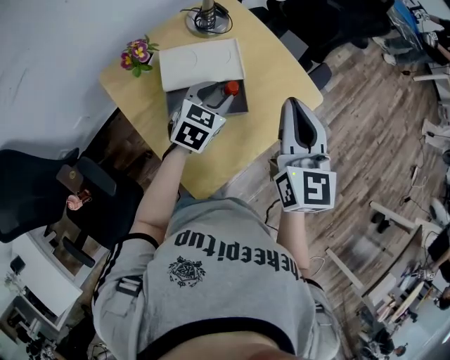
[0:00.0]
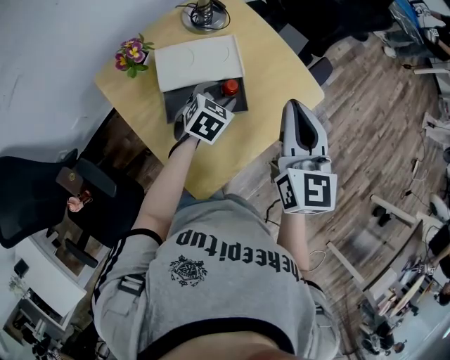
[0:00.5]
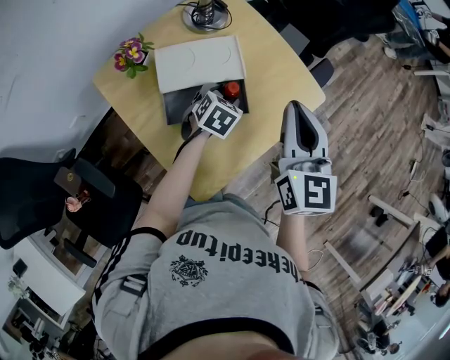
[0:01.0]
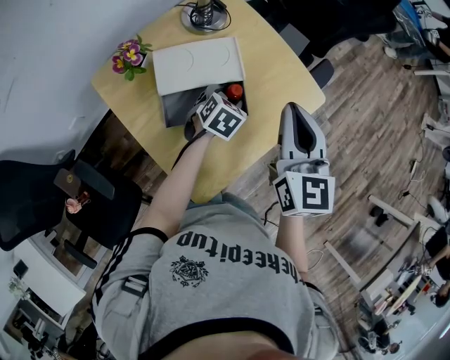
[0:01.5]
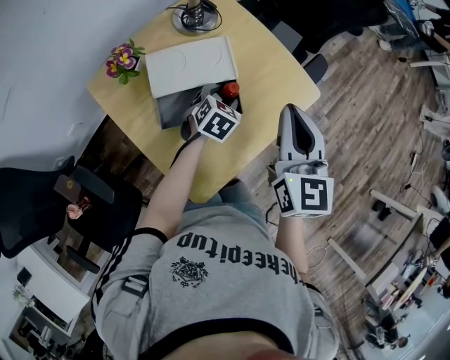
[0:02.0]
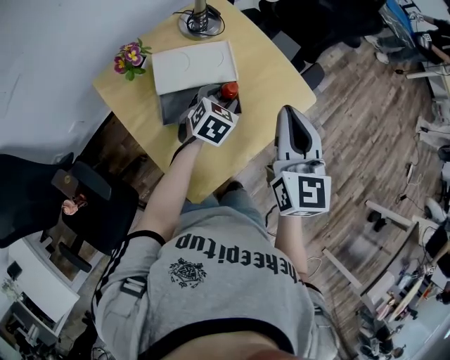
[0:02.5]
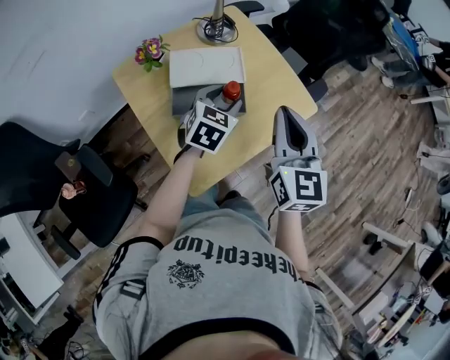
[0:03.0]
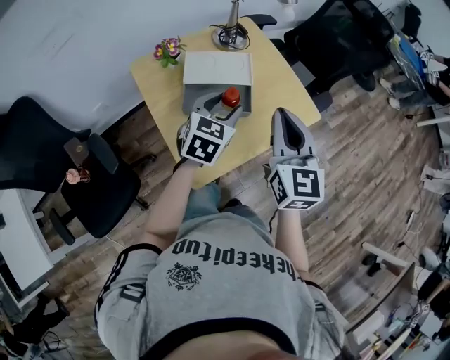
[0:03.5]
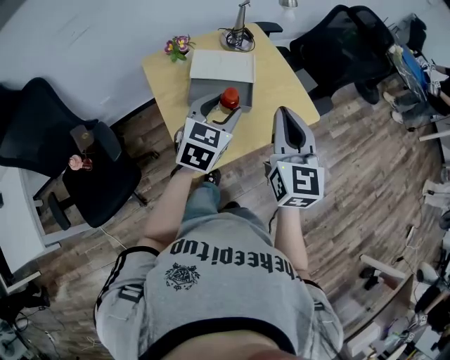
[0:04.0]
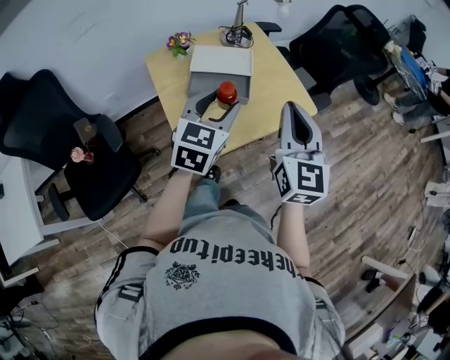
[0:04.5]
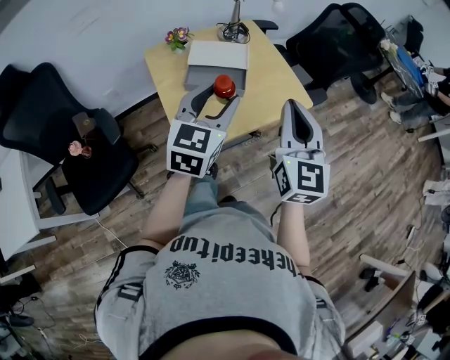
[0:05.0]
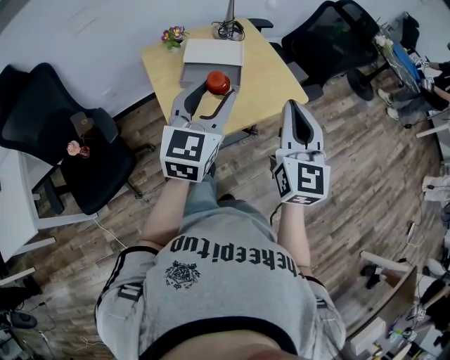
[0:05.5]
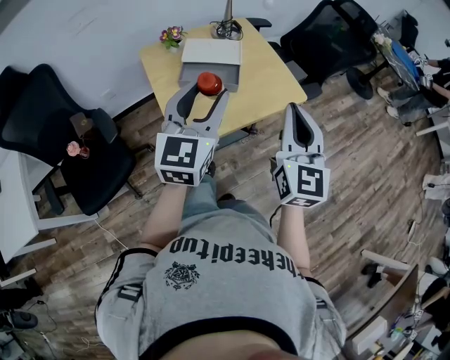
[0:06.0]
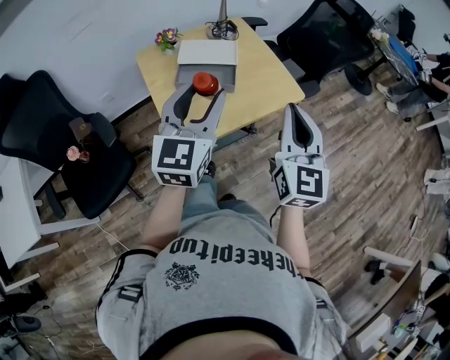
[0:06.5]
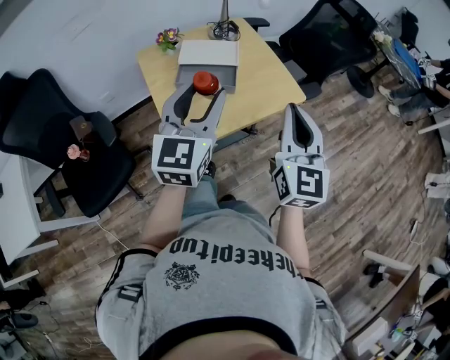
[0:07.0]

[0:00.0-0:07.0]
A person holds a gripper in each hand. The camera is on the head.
0:00.0 to 0:02.0: The left gripper moves downward, about 10 cm.
0:02.0 to 0:03.5: The left gripper is displaced upward and backward by roughly 20 cm, and rotates roughly 30 degrees. Meanwhile the right gripper goes roughly 10 cm backward.
0:03.5 to 0:05.0: The right gripper heads backward, to the right and upward, covering approximately 15 cm, while the left gripper is displaced backward and upward by about 20 cm, and swivels about 20 degrees.
0:05.0 to 0:07.0: The grippers make only small movements.

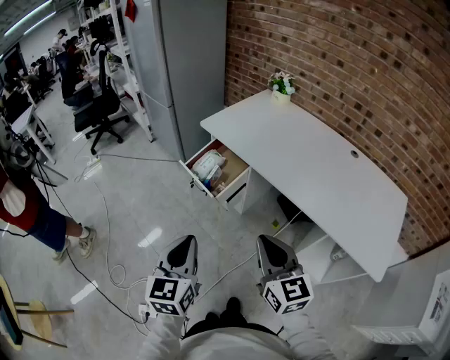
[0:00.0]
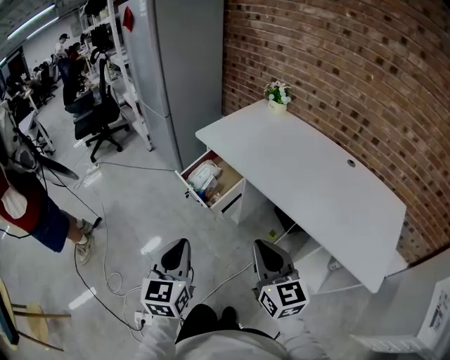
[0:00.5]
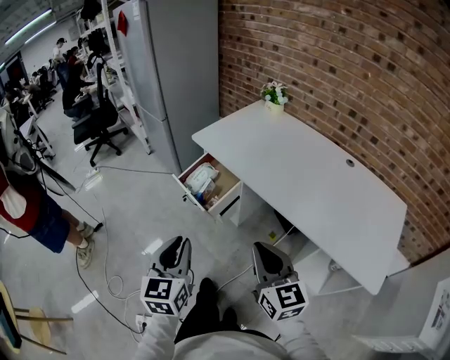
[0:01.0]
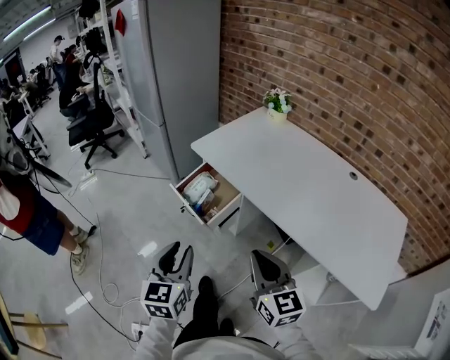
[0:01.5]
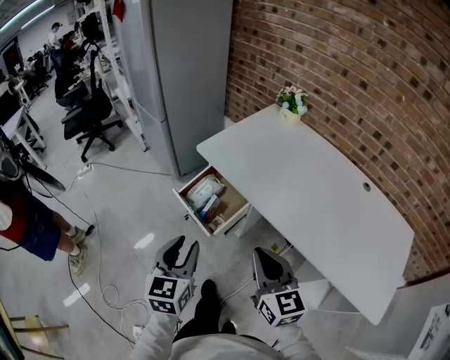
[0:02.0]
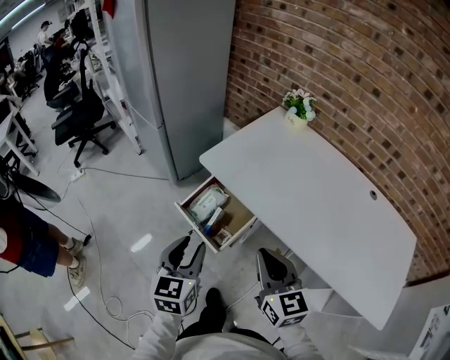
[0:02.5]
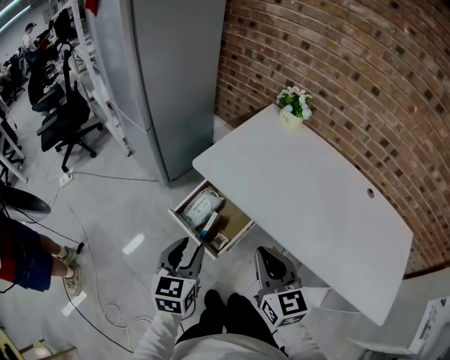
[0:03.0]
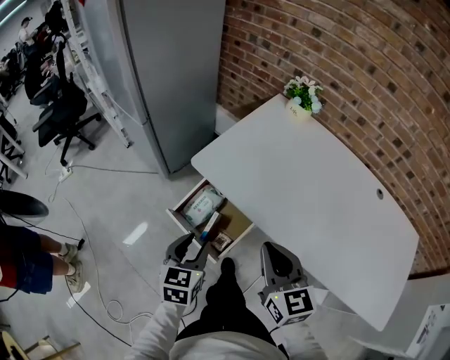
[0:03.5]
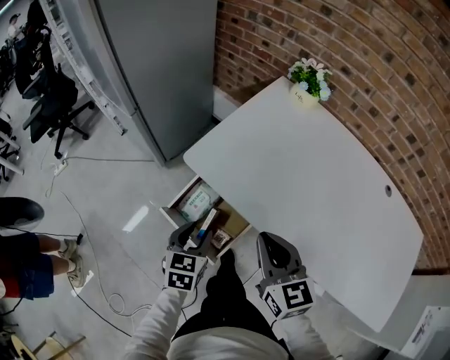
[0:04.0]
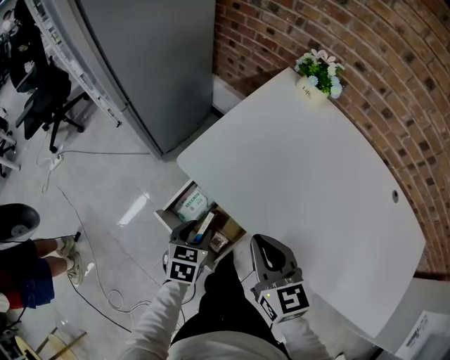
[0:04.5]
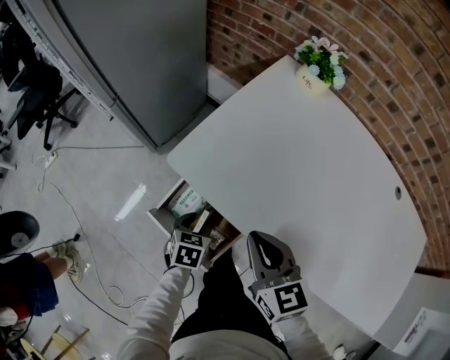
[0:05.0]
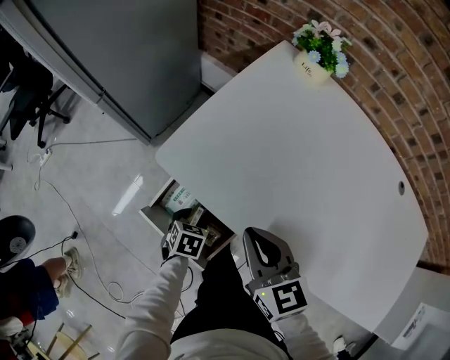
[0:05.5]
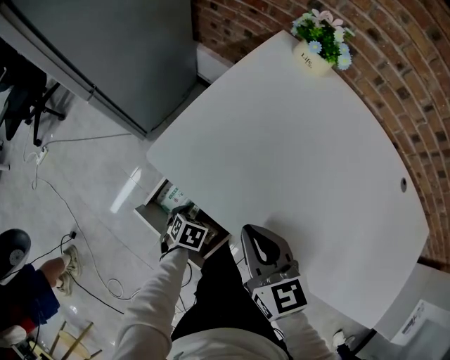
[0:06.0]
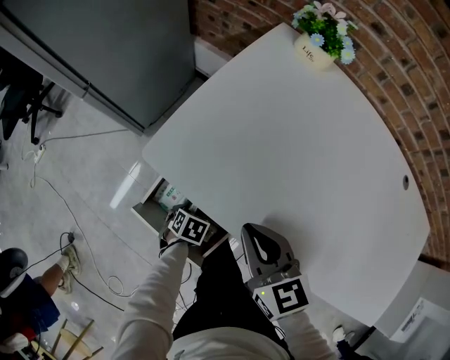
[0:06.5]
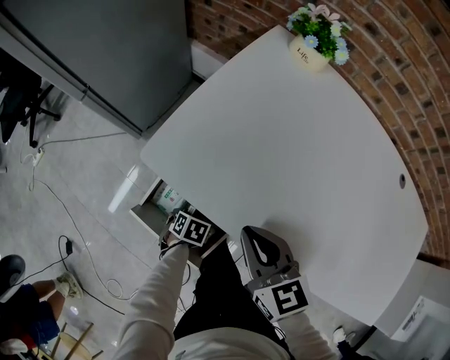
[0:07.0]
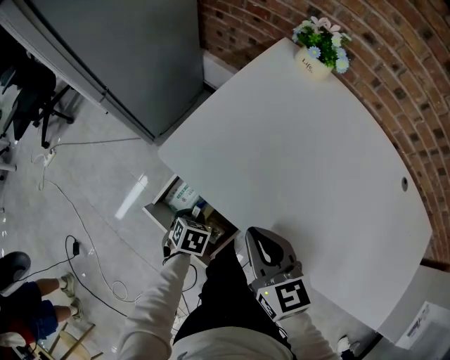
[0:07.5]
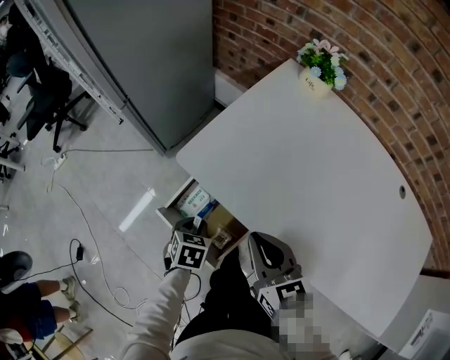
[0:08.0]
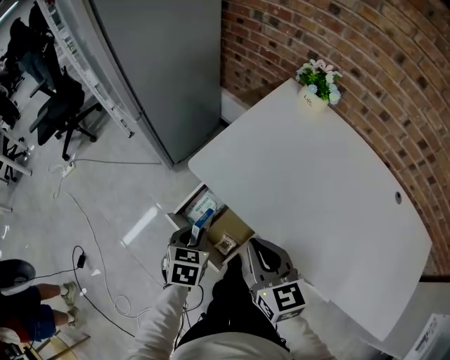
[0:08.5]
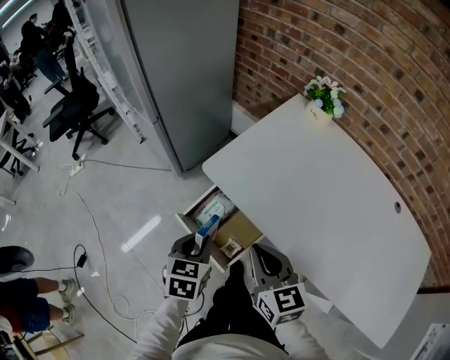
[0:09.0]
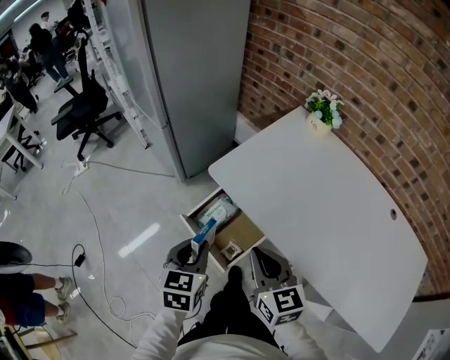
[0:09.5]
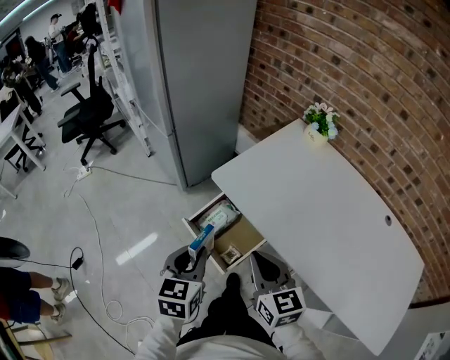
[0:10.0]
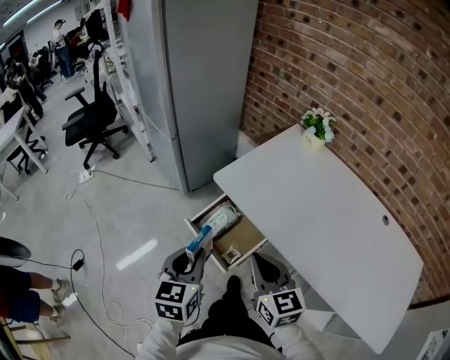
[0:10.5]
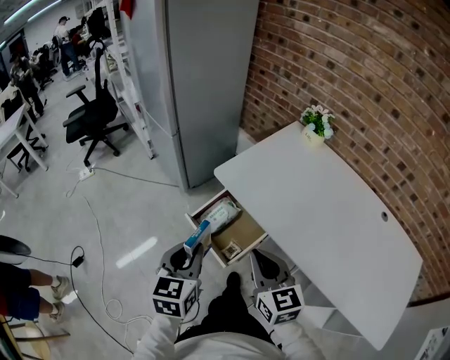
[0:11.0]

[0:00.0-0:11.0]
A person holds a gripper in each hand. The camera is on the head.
0:00.0 to 0:02.0: Both grippers move forward, roughly 20 cm. The left gripper opens up.
0:02.0 to 0:03.5: The left gripper goes roughly 20 cm forward and downward. The right gripper travels forward by roughly 20 cm.
0:03.5 to 0:05.5: The right gripper heads forward and downward, covering approximately 20 cm. The left gripper heads downward and forward, covering roughly 30 cm, and angles its fingers downward, by some 30 degrees.
0:05.5 to 0:07.5: The left gripper reaches some 10 cm downward, then returns, and closes.
0:07.5 to 0:09.0: The left gripper shifts roughly 25 cm upward, and changes its angle by approximately 30 degrees; the right gripper shifts approximately 10 cm backward, upward and to the left.
0:09.0 to 0:11.0: The left gripper goes some 15 cm upward, backward and to the left, and swivels about 20 degrees. Meanwhile the right gripper shifts roughly 10 cm backward.

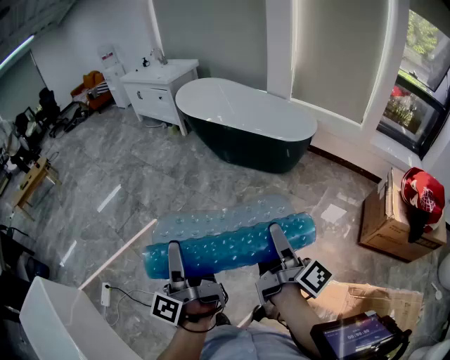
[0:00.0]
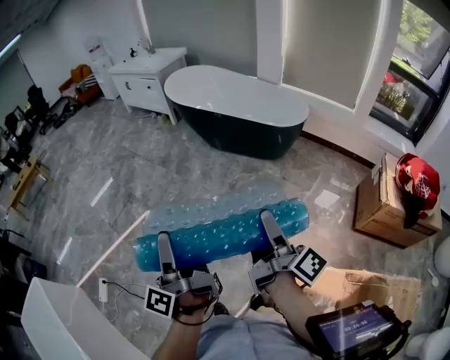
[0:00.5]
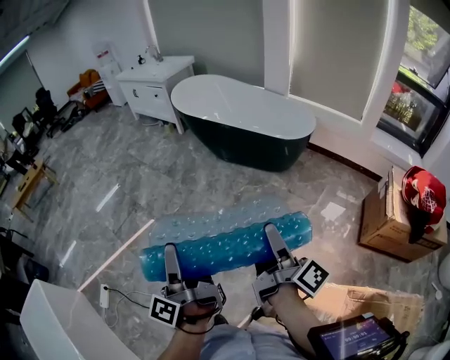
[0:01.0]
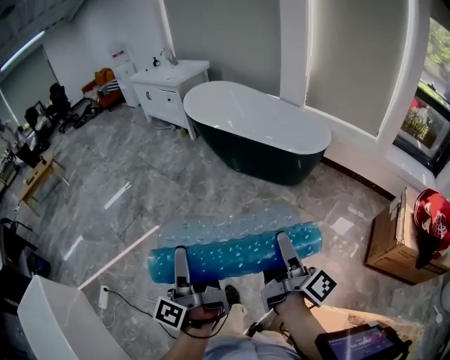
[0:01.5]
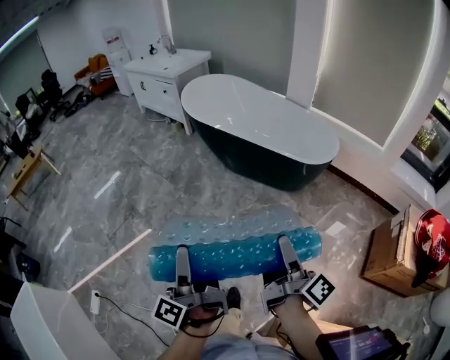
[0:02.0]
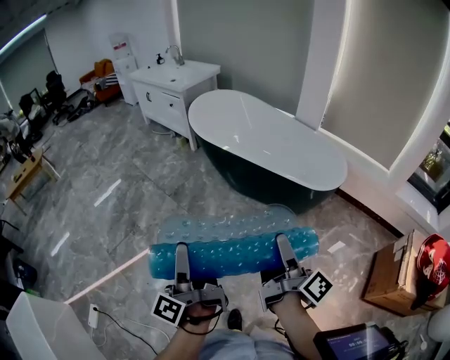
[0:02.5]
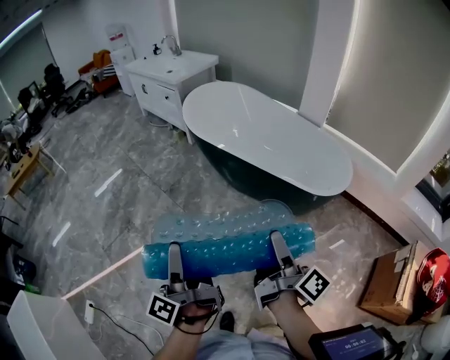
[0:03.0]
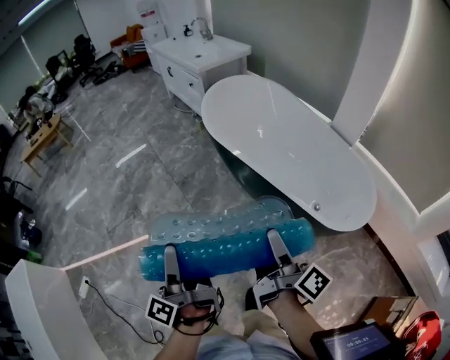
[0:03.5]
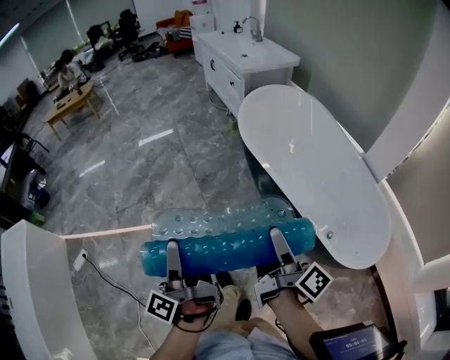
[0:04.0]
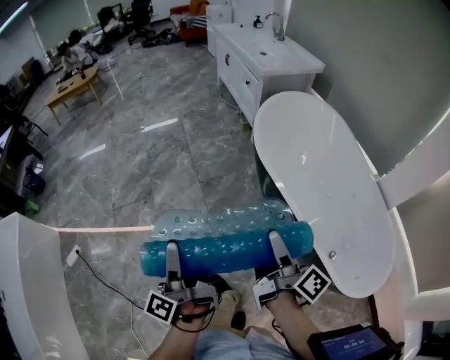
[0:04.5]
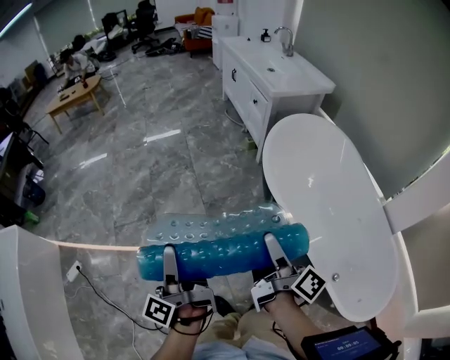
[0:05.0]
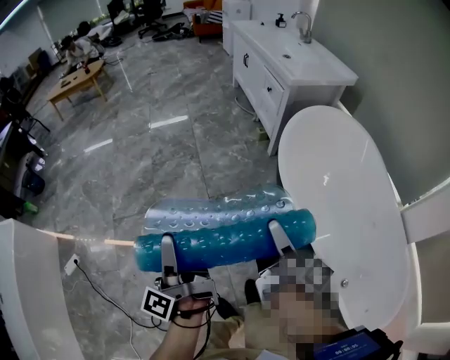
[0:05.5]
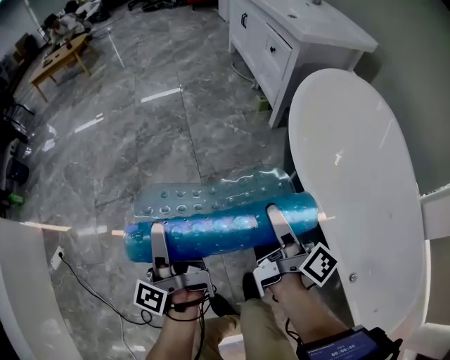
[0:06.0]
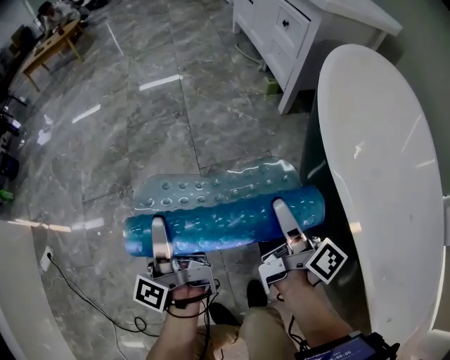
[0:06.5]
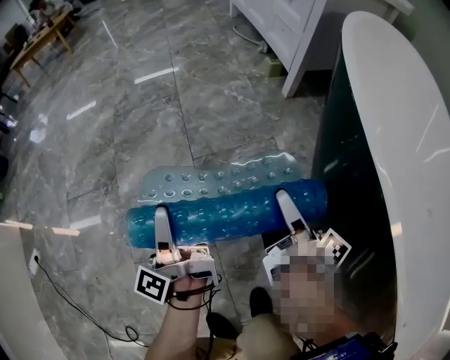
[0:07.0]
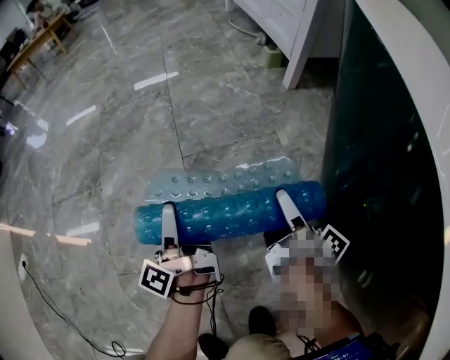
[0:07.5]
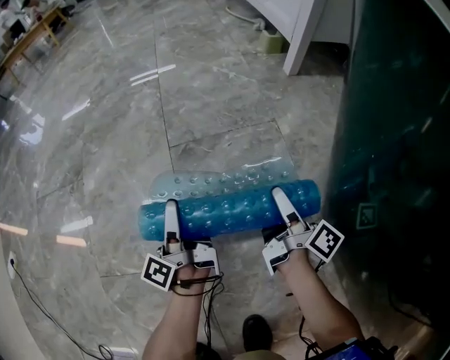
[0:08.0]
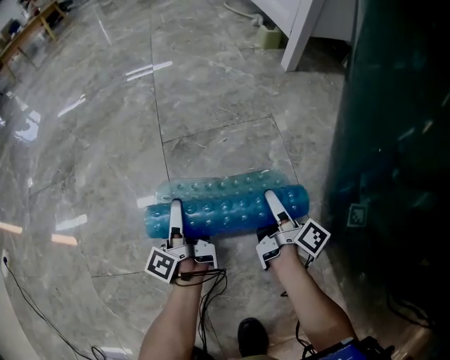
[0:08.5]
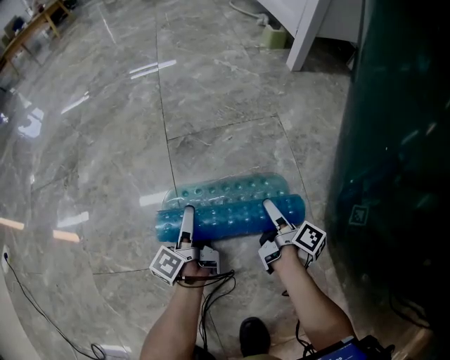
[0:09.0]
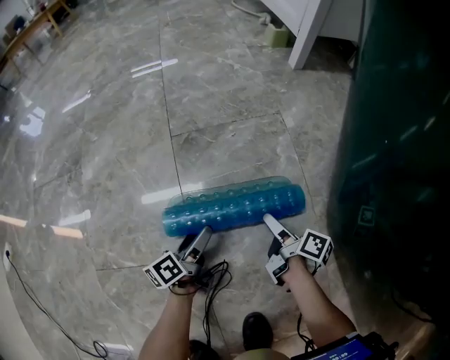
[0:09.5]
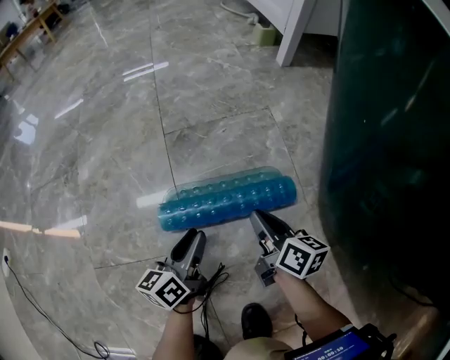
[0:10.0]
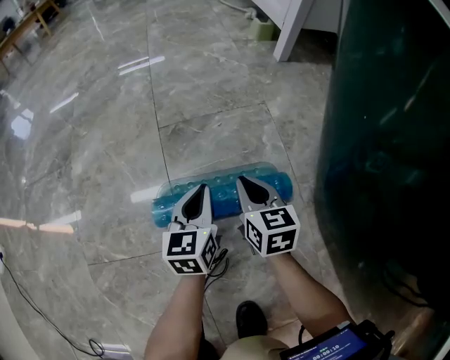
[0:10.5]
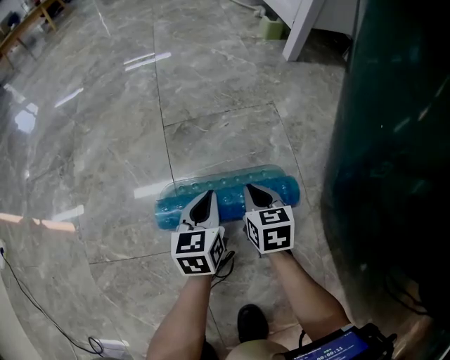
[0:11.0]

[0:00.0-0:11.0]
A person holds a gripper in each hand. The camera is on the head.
0:00.0 to 0:02.0: The two grippers go approximately 25 cm forward.
0:02.0 to 0:03.5: The grippers both shift forward by roughly 35 cm.
0:03.5 to 0:05.5: Both grippers move forward, roughly 40 cm. The right gripper rotates some 20 degrees. Meanwhile the left gripper rotates about 20 degrees.
0:05.5 to 0:07.5: Both grippers move downward, roughly 60 cm.
0:07.5 to 0:09.0: Both grippers move downward, approximately 25 cm.
0:09.0 to 0:11.0: The right gripper goes approximately 10 cm to the left and upward, rolls counterclockwise, seen from behind, by roughly 70 degrees, and closes; the left gripper moves to the right and upward, some 10 cm, reaches about 10 cm backward, then returns, rotates around the line of its fingers by roughly 60 degrees, clockwise from behind, and closes.
